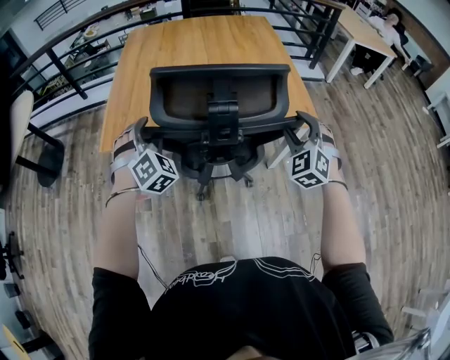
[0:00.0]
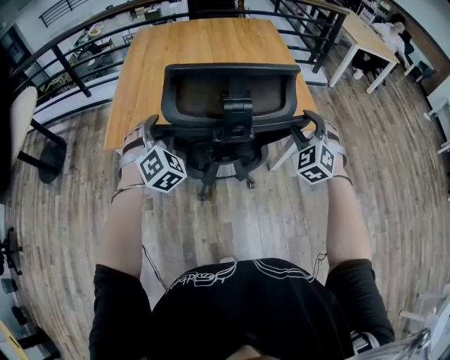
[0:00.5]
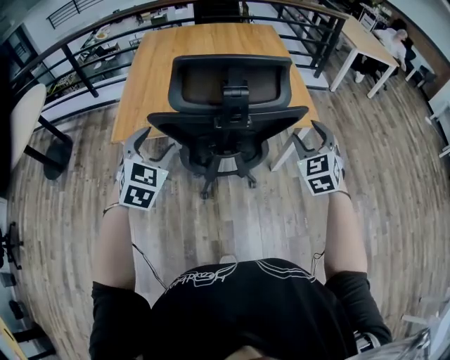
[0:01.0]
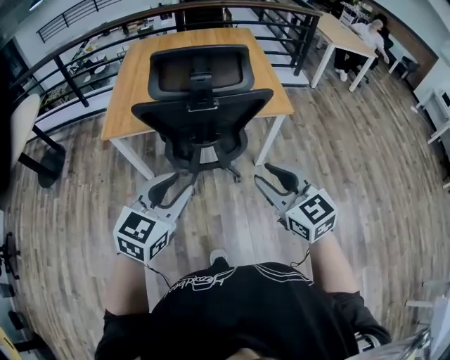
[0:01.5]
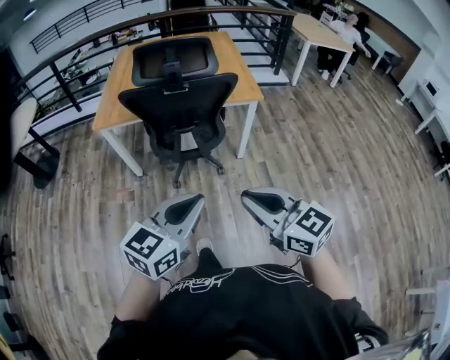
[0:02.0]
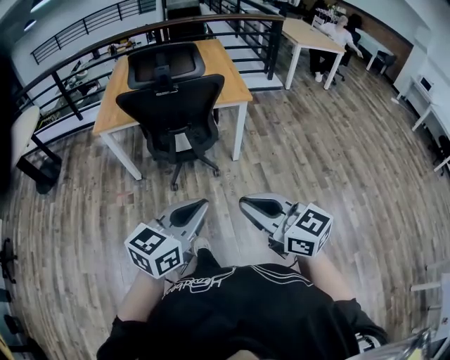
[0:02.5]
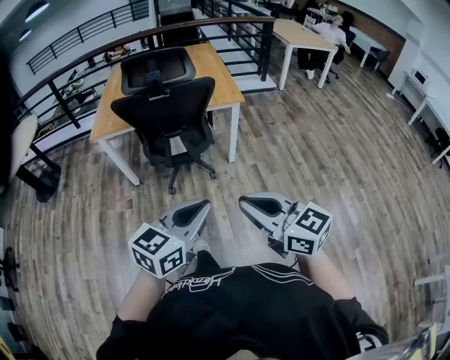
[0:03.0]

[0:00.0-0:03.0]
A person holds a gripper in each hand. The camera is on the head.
0:00.0 to 0:01.5: The left gripper moves backward and to the right, about 35 cm, and changes its angle by approximately 60 degrees. The right gripper heads backward, covering about 30 cm, and turns by approximately 50 degrees.
0:01.5 to 0:03.0: The left gripper is displaced backward and to the right by some 30 cm, and closes its fingers, while the right gripper moves backward, about 30 cm, and closes its fingers.

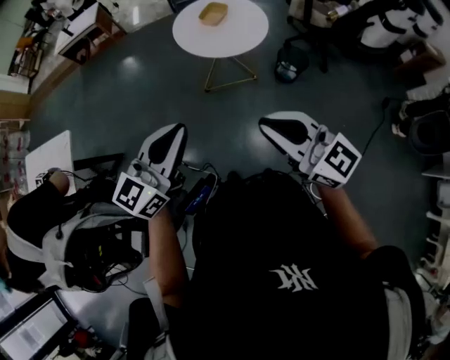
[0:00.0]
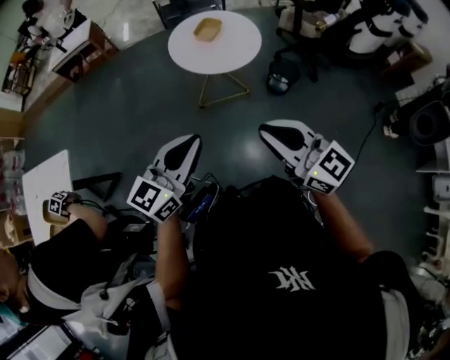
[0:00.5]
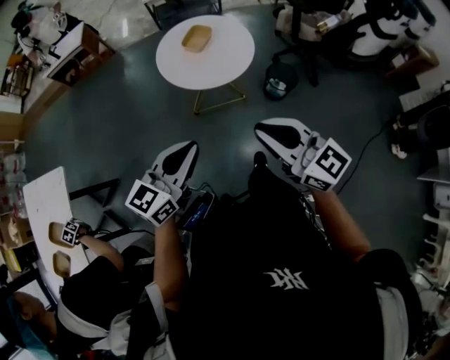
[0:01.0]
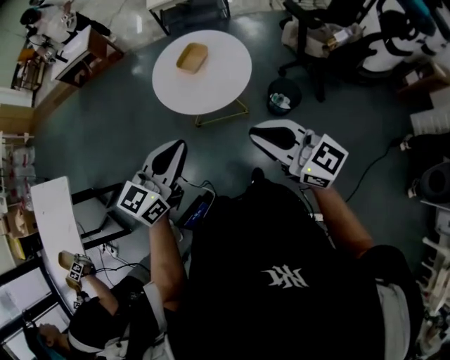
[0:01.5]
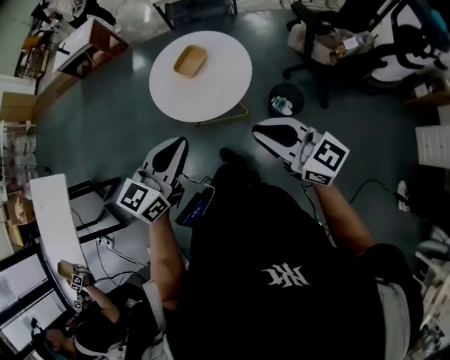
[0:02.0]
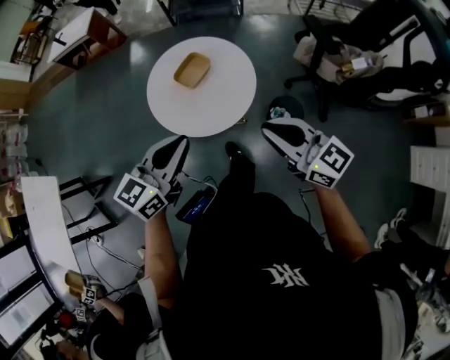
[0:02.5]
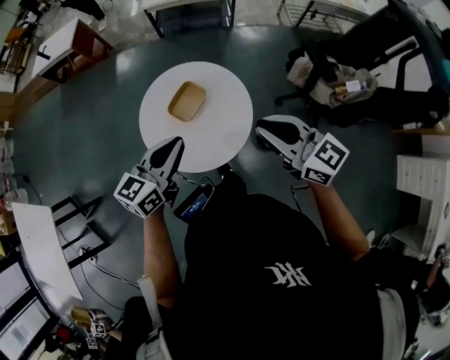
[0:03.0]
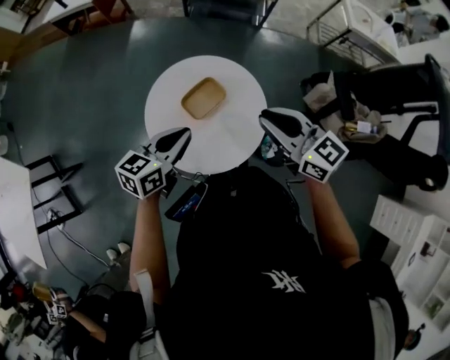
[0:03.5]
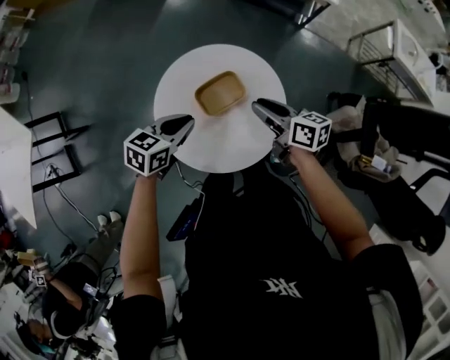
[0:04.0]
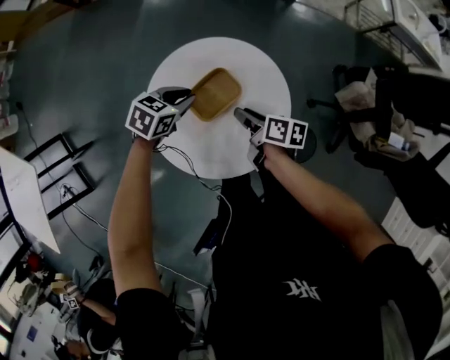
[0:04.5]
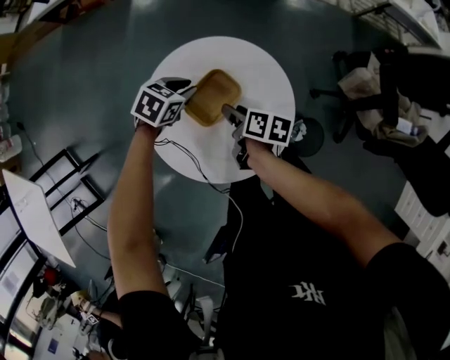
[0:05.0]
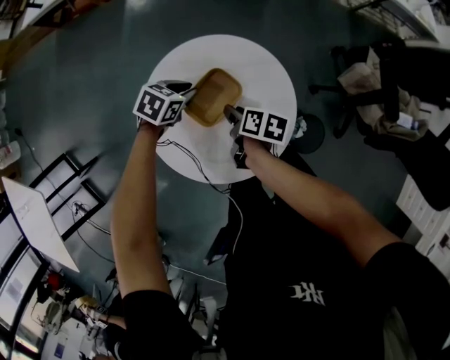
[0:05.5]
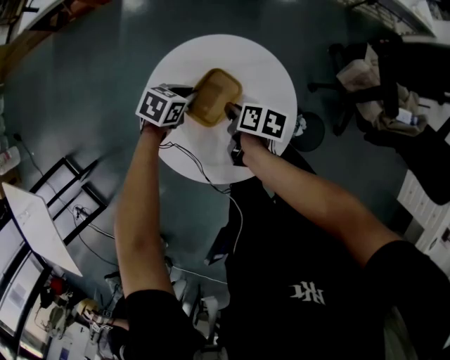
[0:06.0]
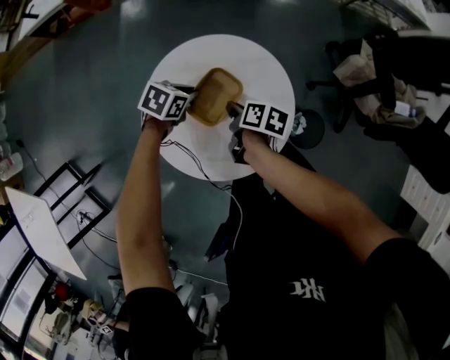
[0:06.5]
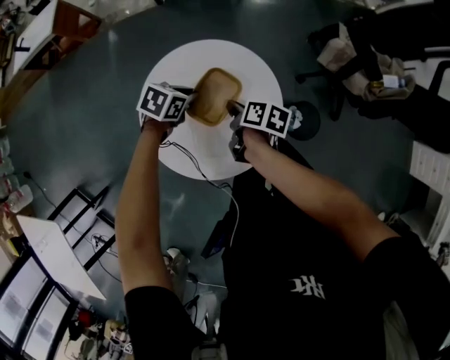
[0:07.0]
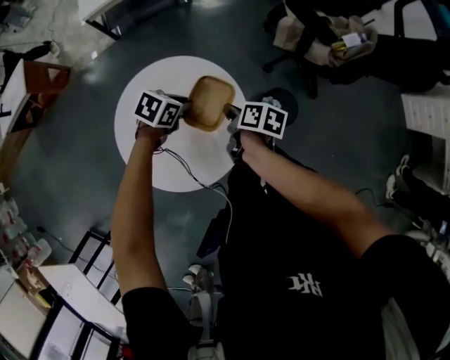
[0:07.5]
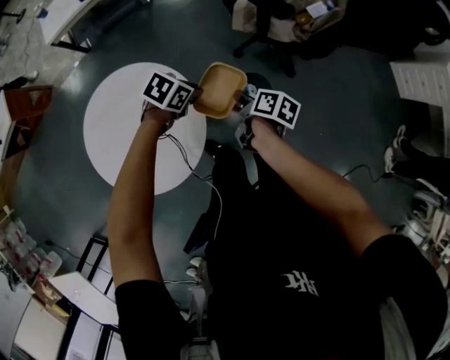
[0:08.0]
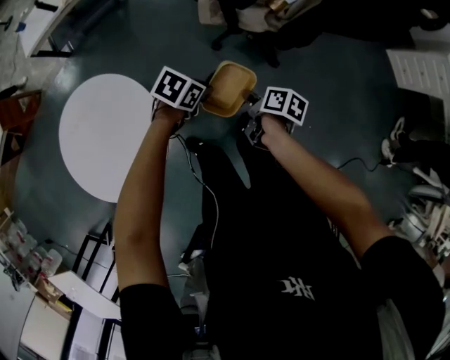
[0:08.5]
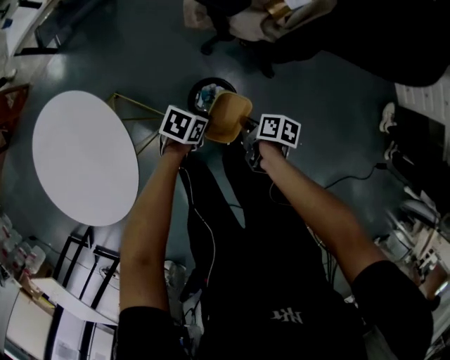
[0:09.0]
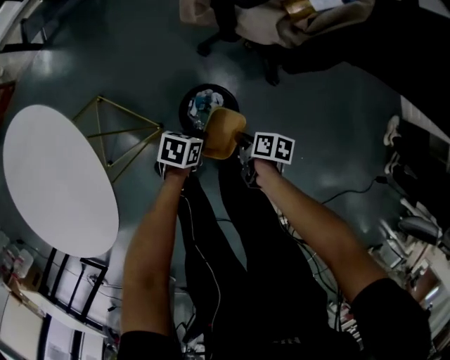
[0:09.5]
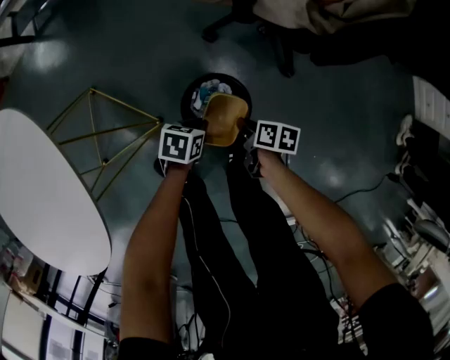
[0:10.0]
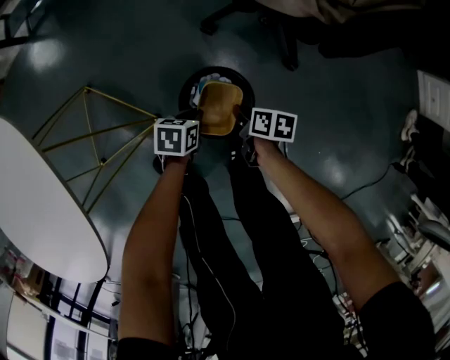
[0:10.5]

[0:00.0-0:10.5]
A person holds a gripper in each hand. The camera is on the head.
0:00.0 to 0:02.0: The grippers both shift forward and to the right by about 35 cm.
0:02.0 to 0:04.0: Both grippers travel together forward and downward, some 50 cm. The left gripper rotates about 30 degrees, while the right gripper turns by some 40 degrees.
0:04.0 to 0:06.5: Both grippers travel together downward, approximately 15 cm. The left gripper changes its angle by approximately 40 degrees. Meanwhile the right gripper turns by about 50 degrees, and opens and closes again.
0:06.5 to 0:08.5: The two grippers travel together, some 50 cm. The left gripper turns by approximately 40 degrees, while the right gripper changes its angle by roughly 40 degrees.
0:08.5 to 0:10.5: The grippers both shift downward by approximately 40 cm. The left gripper rotates roughly 30 degrees. The right gripper rotates roughly 20 degrees.

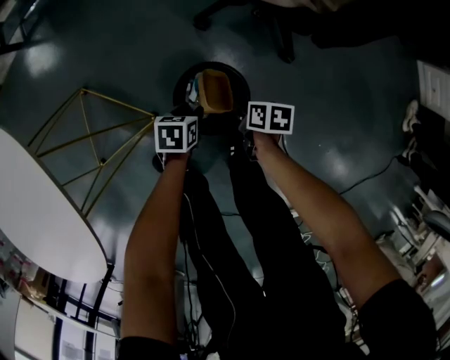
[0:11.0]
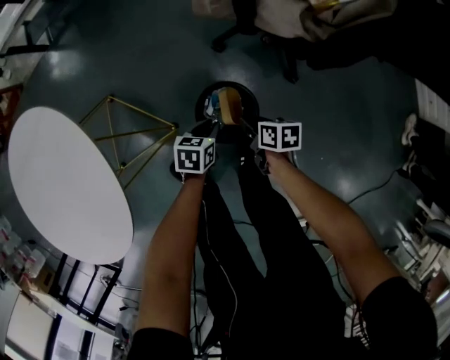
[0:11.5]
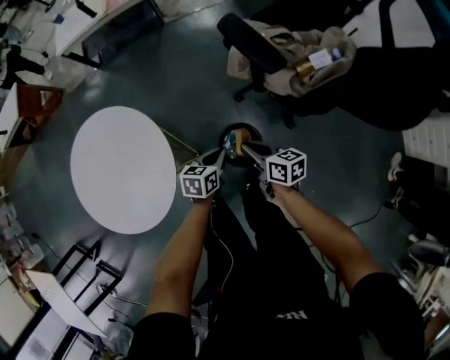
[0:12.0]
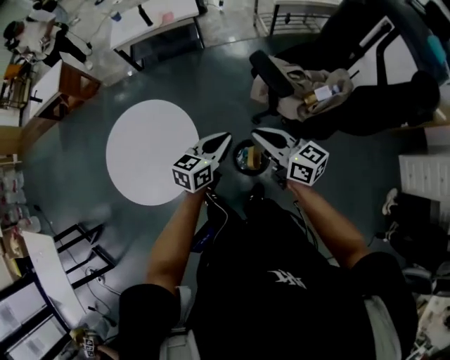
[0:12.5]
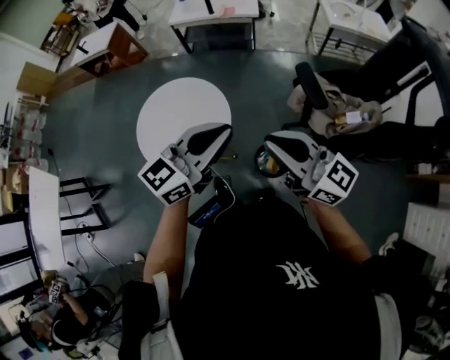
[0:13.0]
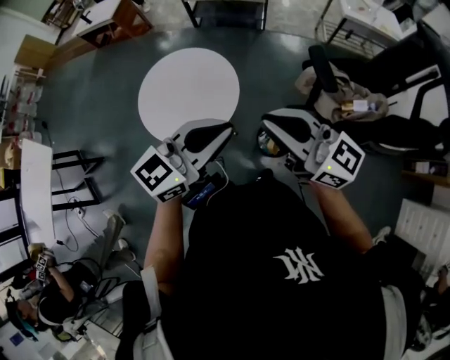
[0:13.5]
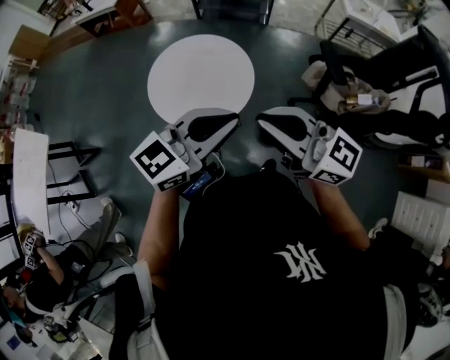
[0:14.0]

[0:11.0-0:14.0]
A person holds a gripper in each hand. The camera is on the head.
0:11.0 to 0:12.5: Both grippers move upward, approximately 60 cm. The right gripper points its fingers some 60 degrees further upward. The left gripper tips its fingers upward by about 40 degrees, and closes up.
0:12.5 to 0:14.0: The right gripper shifts roughly 35 cm to the left, upward and backward, and turns by about 40 degrees. Meanwhile the left gripper goes roughly 35 cm upward, to the left and backward, and swivels about 20 degrees.

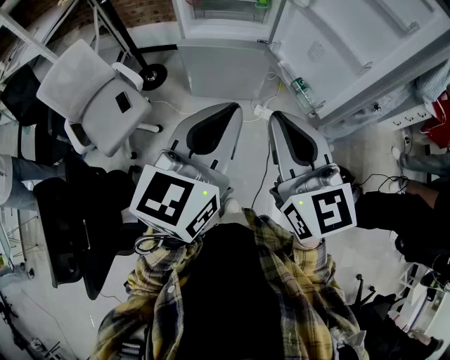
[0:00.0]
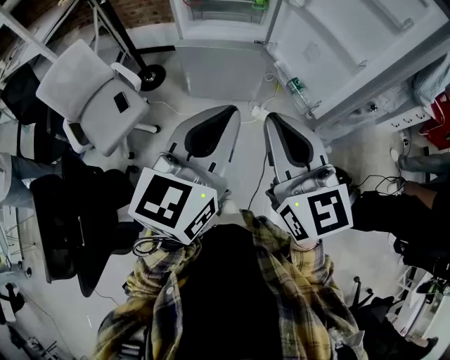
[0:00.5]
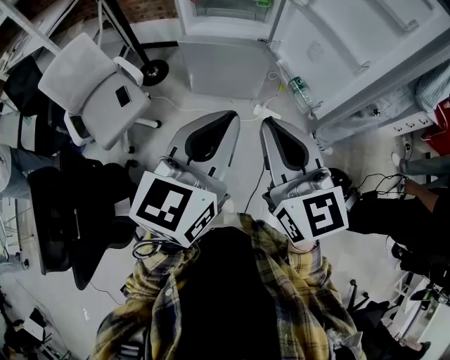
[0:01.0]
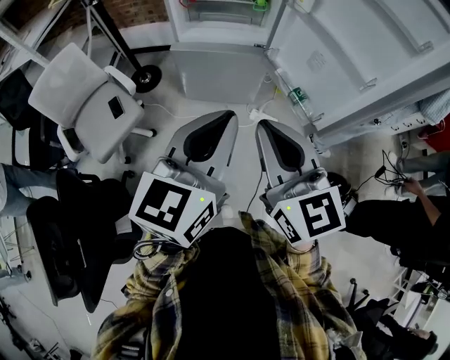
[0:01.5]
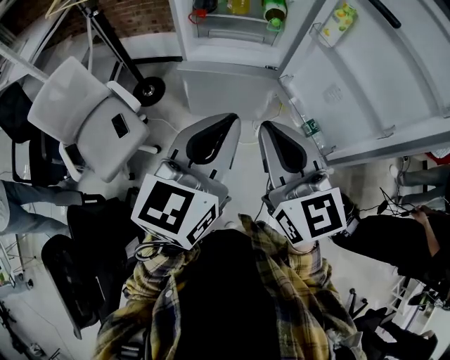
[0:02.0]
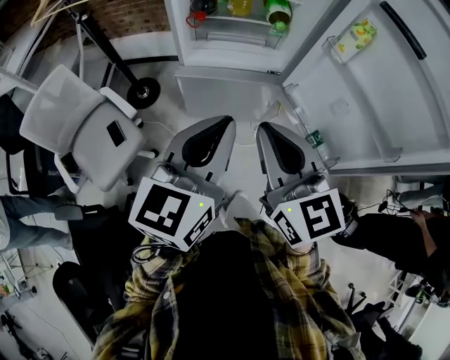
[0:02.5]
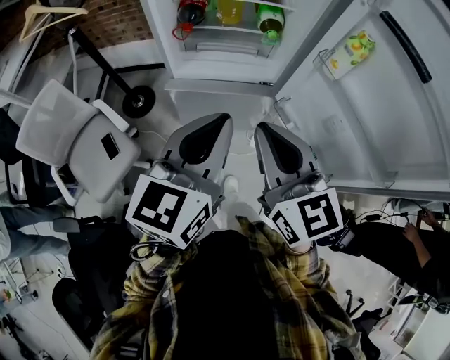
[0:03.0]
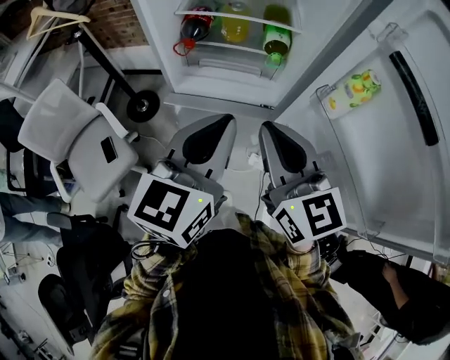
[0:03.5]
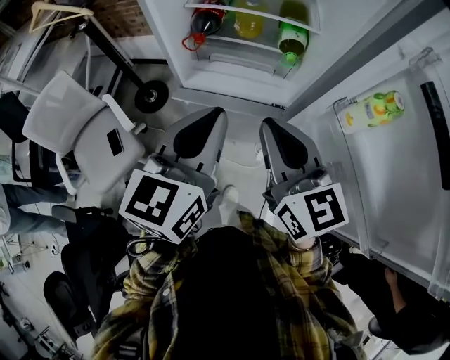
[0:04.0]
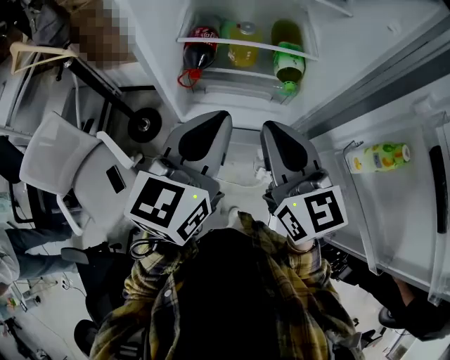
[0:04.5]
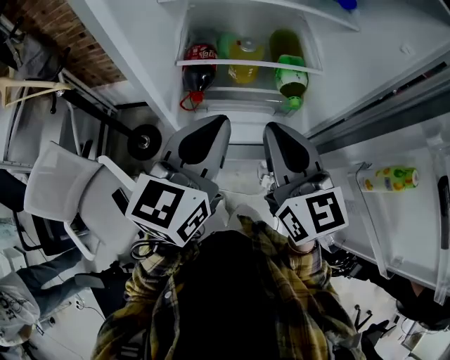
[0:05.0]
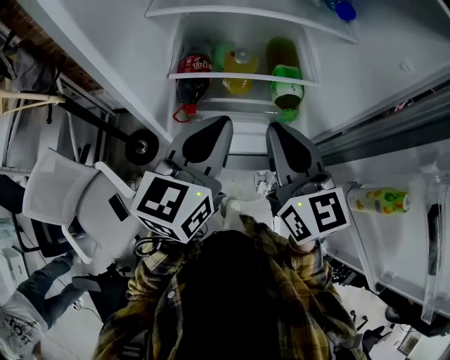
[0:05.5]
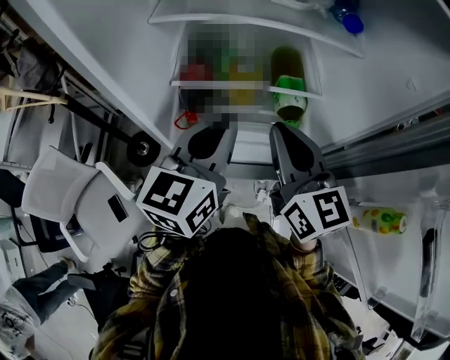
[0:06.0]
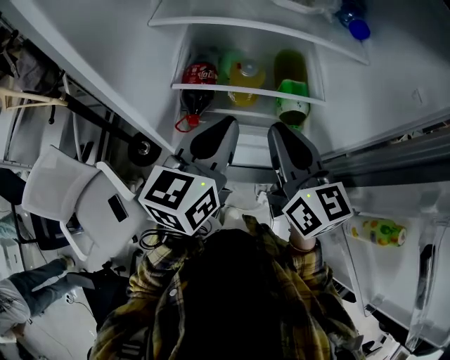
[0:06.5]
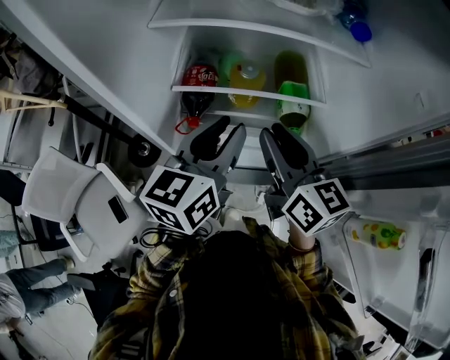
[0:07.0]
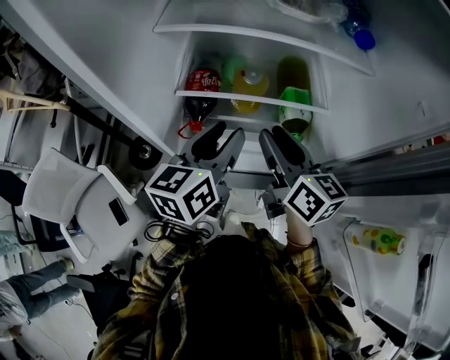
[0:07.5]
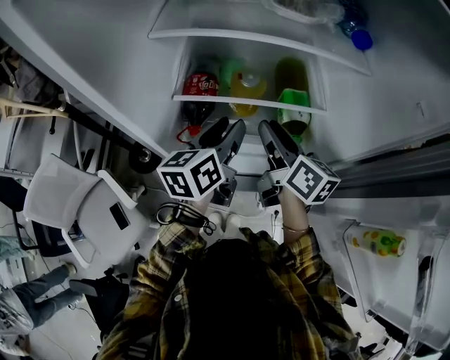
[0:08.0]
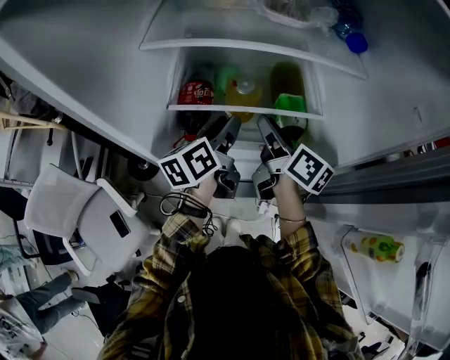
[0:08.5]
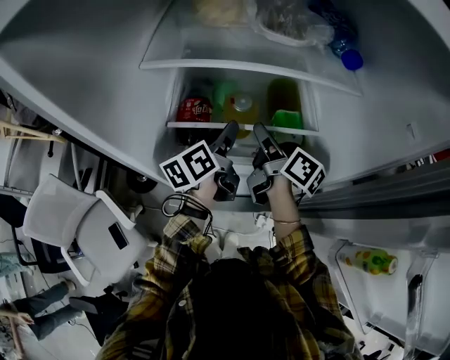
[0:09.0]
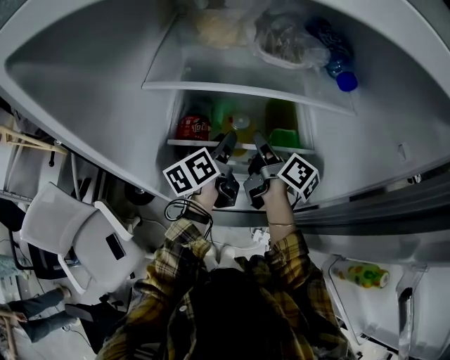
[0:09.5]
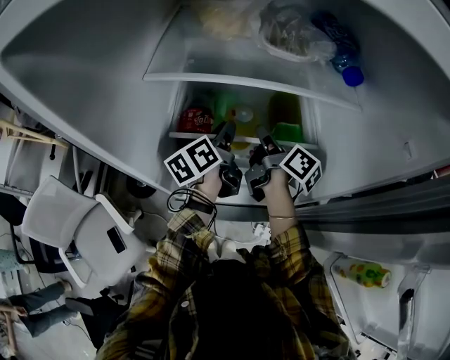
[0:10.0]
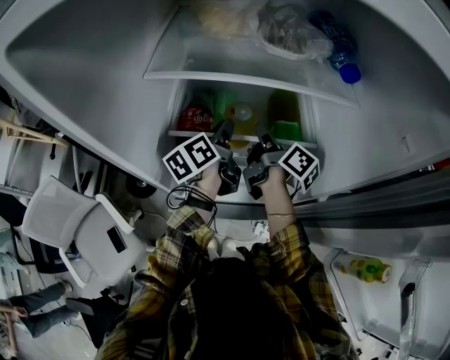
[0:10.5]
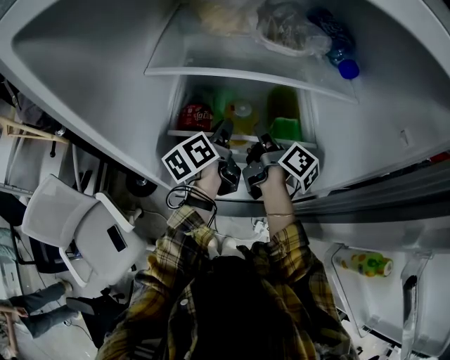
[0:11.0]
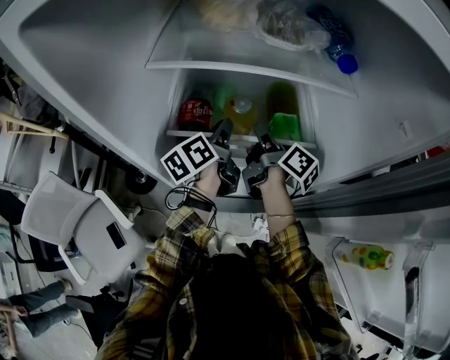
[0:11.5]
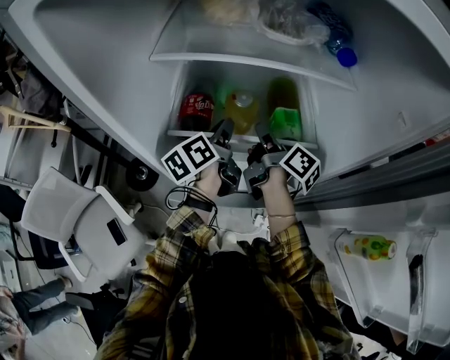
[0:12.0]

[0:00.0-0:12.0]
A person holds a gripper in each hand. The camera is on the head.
0:00.0 to 0:02.0: The two grippers go approximately 15 cm forward.
0:02.0 to 0:04.0: The grippers both shift forward by about 25 cm.
0:04.0 to 0:06.0: The grippers both shift forward by approximately 20 cm.
0:06.0 to 0:08.0: Both grippers travel together downward and forward, about 15 cm. The left gripper rotates some 20 degrees, and opens its fingers. Meanwhile the right gripper changes its angle by some 30 degrees, and opens.
0:08.0 to 0:10.0: Both grippers travel together forward, about 10 cm. The right gripper rotates about 30 degrees. The left gripper changes its angle by about 20 degrees.
0:10.0 to 0:12.0: Both grippers travel together backward, roughly 5 cm.
